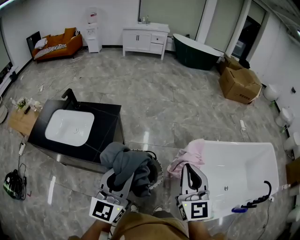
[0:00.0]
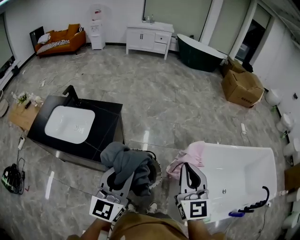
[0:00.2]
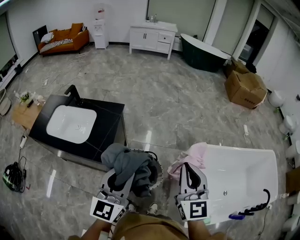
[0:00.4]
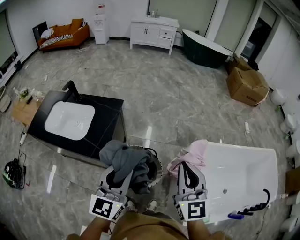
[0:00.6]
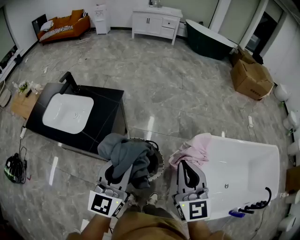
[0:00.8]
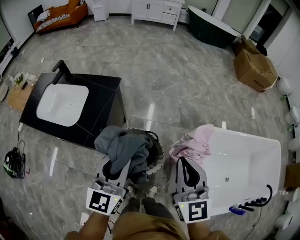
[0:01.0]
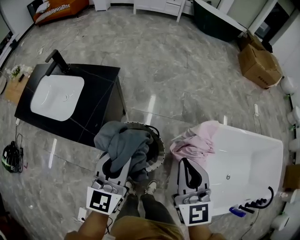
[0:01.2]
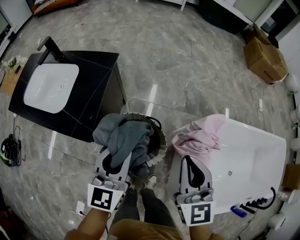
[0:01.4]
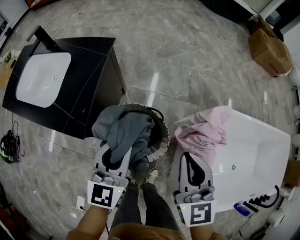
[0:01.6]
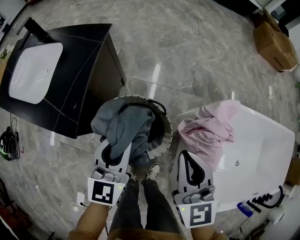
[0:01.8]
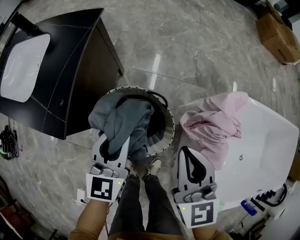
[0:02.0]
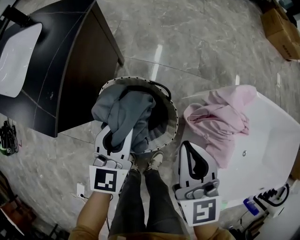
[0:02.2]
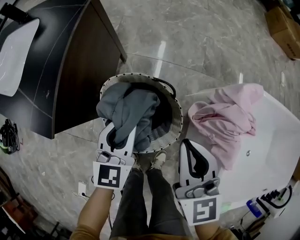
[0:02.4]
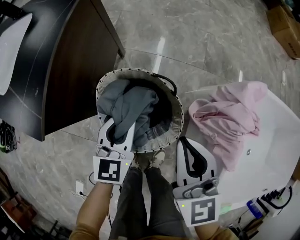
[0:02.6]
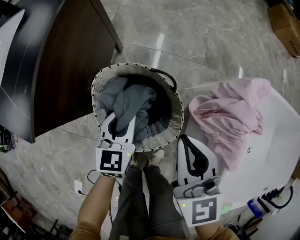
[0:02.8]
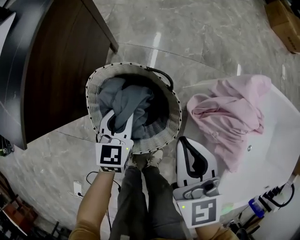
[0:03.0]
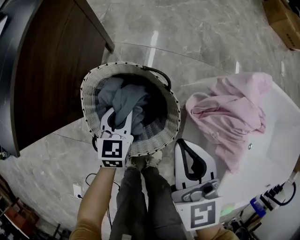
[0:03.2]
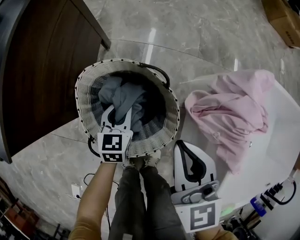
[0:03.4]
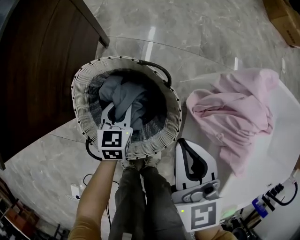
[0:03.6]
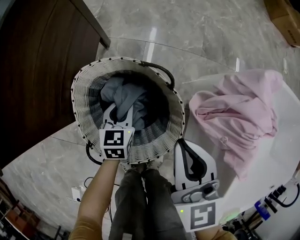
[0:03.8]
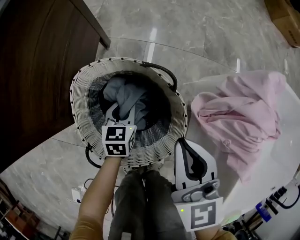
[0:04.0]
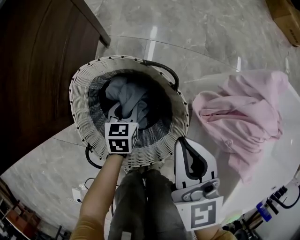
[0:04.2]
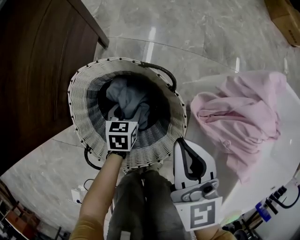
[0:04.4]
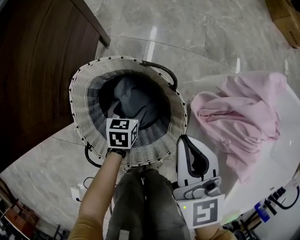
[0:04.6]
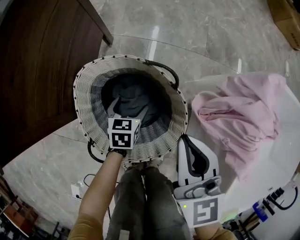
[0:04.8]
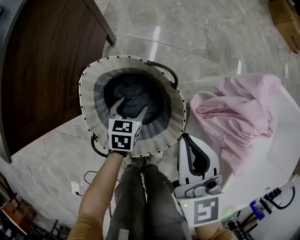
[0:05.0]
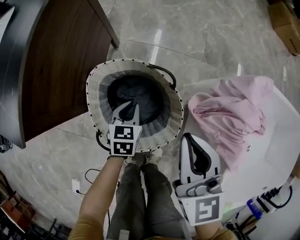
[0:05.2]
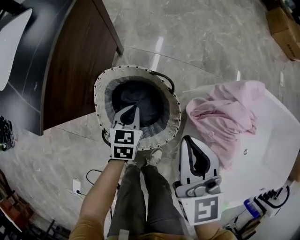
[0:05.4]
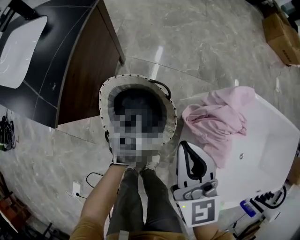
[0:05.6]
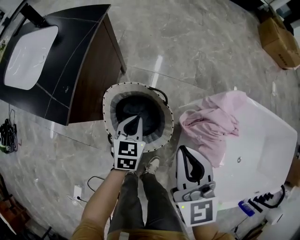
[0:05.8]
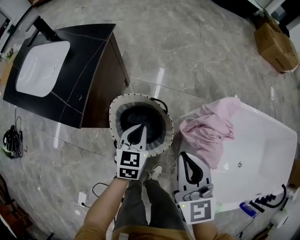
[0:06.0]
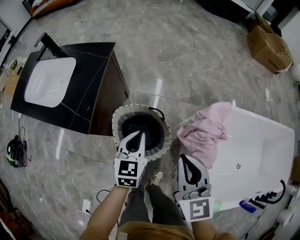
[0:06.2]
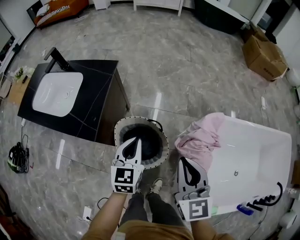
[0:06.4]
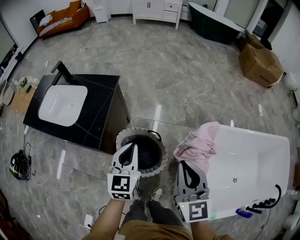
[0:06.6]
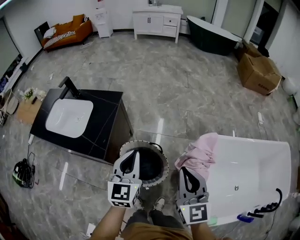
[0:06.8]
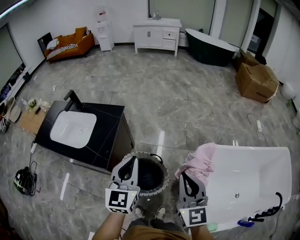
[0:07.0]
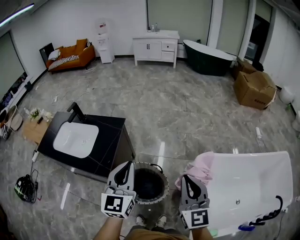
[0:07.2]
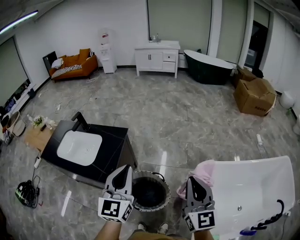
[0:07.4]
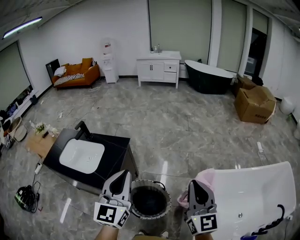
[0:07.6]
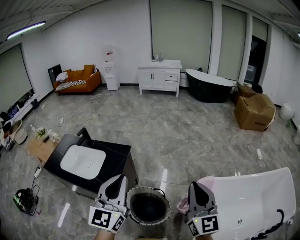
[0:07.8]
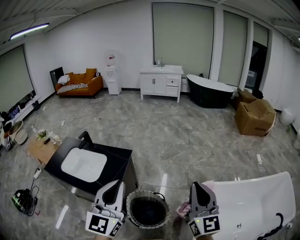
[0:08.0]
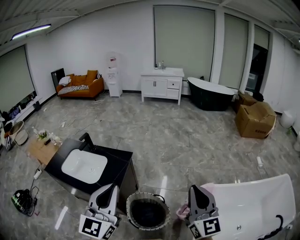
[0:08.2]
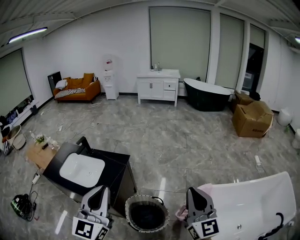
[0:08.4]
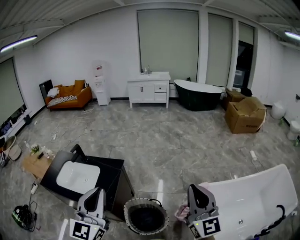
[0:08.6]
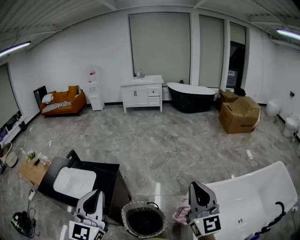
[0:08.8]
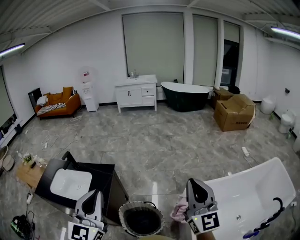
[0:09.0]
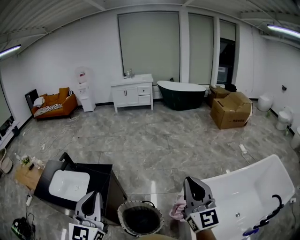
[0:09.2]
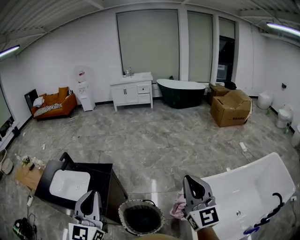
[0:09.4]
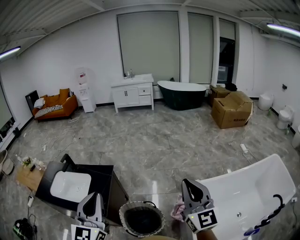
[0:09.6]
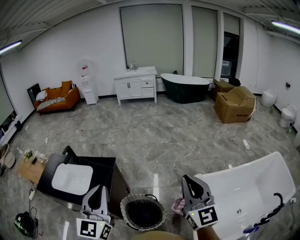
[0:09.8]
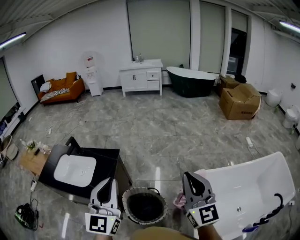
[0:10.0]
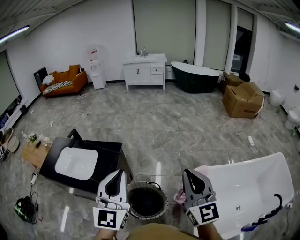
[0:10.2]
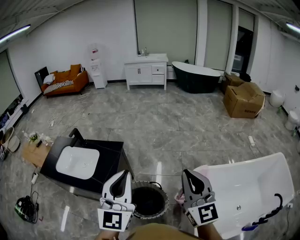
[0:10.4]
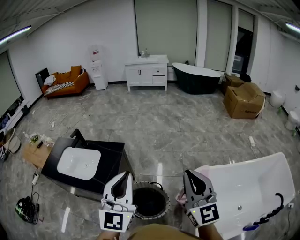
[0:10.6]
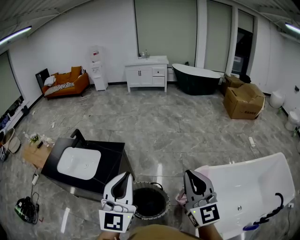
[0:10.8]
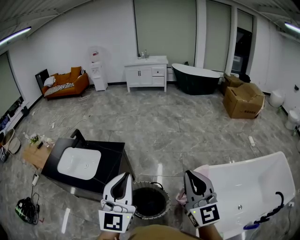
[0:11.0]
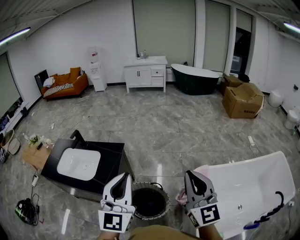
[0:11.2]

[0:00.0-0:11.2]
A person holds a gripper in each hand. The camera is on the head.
0:00.0 to 0:01.6: Both grippers travel together downward and forward, some 25 cm. The left gripper rotates some 20 degrees.
0:01.6 to 0:03.2: The left gripper moves downward, roughly 40 cm. Meanwhile the right gripper shifts some 25 cm downward.
0:03.2 to 0:04.8: The left gripper shifts some 15 cm downward, rotates some 20 degrees, and opens its fingers, while the right gripper moves downward, roughly 5 cm.
0:04.8 to 0:06.4: Both grippers move upward, some 50 cm. The left gripper changes its angle by roughly 30 degrees, and closes its fingers.
0:06.4 to 0:08.0: The grippers both shift upward by roughly 35 cm. The right gripper swivels approximately 20 degrees. The left gripper tilts its fingers approximately 30 degrees upward.
0:08.0 to 0:09.6: The right gripper moves approximately 5 cm.
0:09.6 to 0:11.2: The right gripper moves to the left, approximately 5 cm.

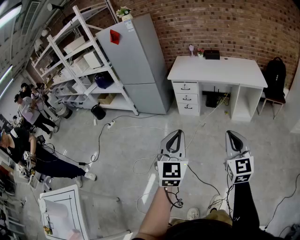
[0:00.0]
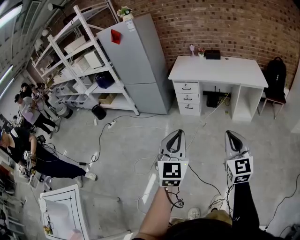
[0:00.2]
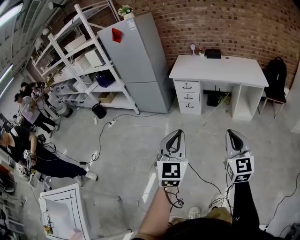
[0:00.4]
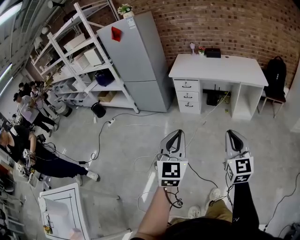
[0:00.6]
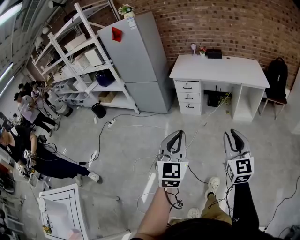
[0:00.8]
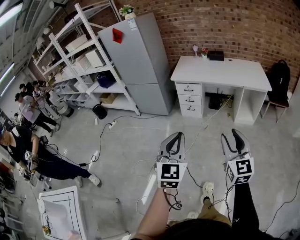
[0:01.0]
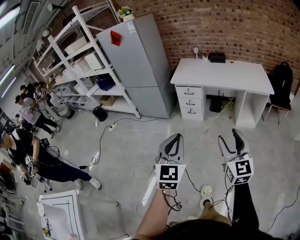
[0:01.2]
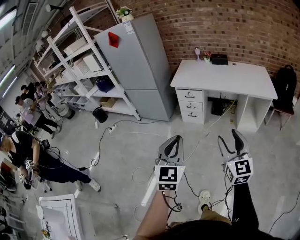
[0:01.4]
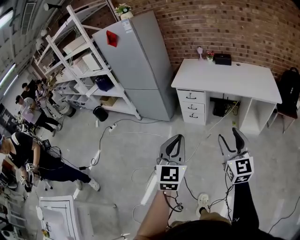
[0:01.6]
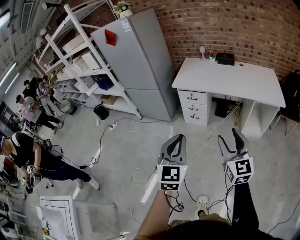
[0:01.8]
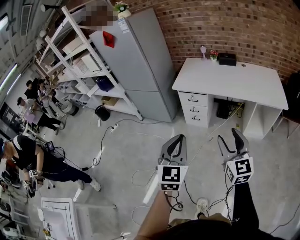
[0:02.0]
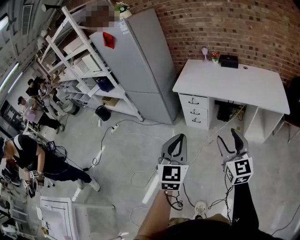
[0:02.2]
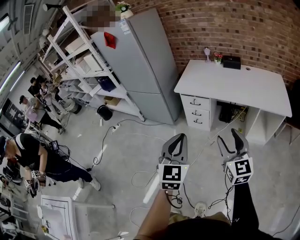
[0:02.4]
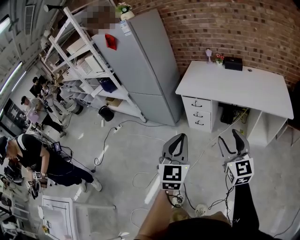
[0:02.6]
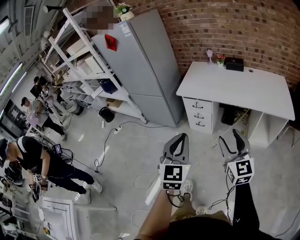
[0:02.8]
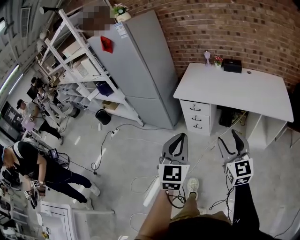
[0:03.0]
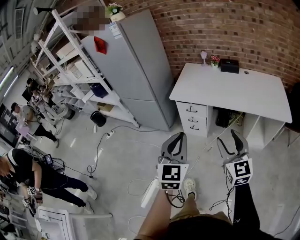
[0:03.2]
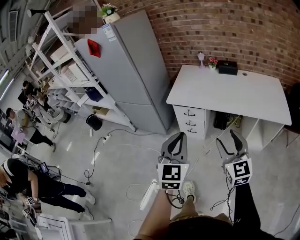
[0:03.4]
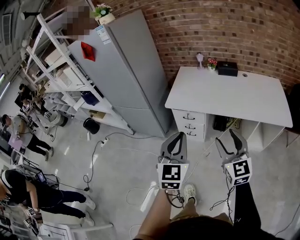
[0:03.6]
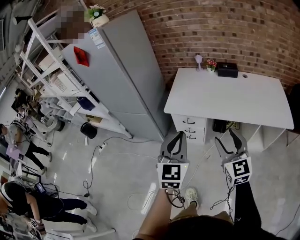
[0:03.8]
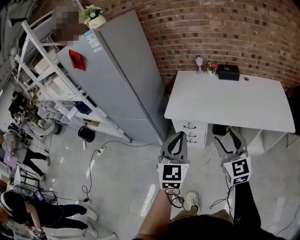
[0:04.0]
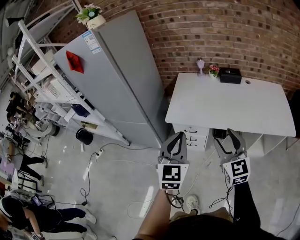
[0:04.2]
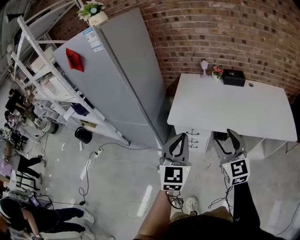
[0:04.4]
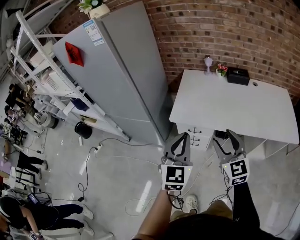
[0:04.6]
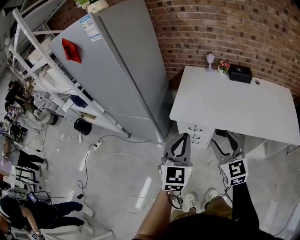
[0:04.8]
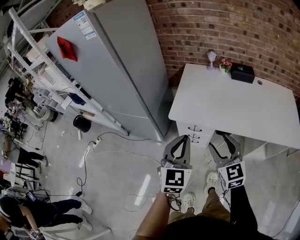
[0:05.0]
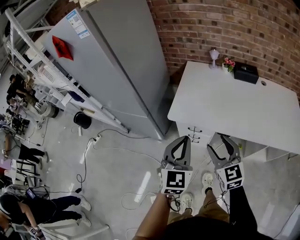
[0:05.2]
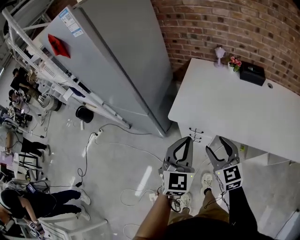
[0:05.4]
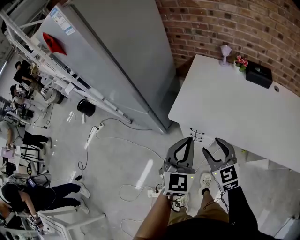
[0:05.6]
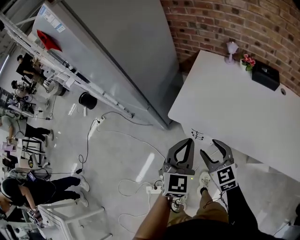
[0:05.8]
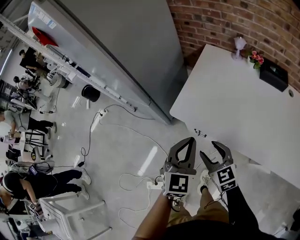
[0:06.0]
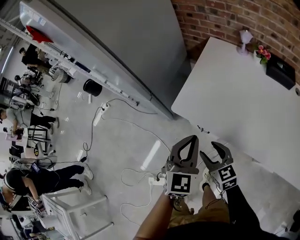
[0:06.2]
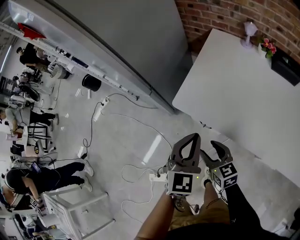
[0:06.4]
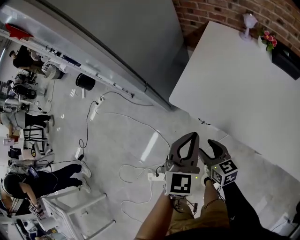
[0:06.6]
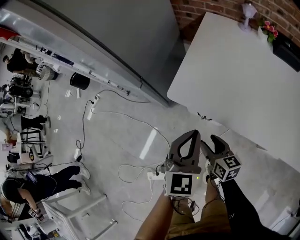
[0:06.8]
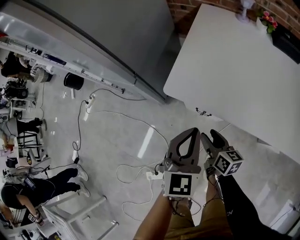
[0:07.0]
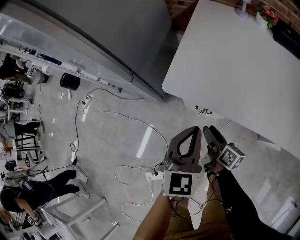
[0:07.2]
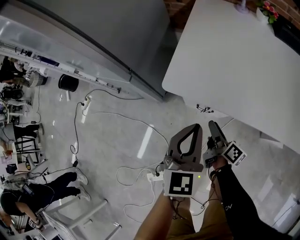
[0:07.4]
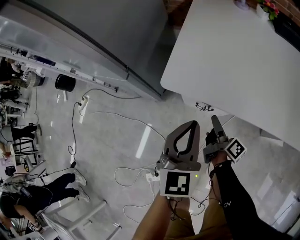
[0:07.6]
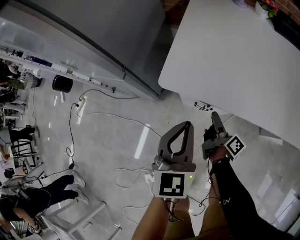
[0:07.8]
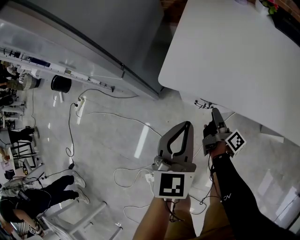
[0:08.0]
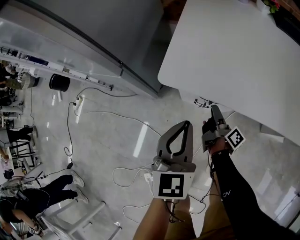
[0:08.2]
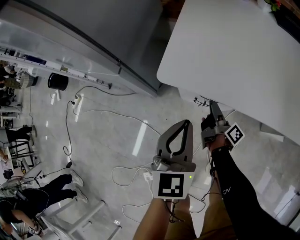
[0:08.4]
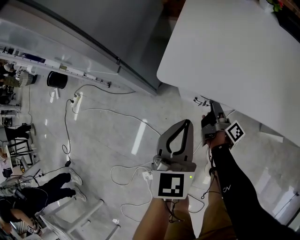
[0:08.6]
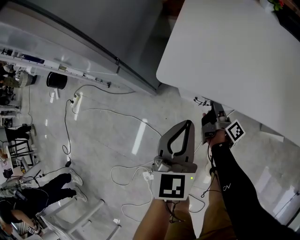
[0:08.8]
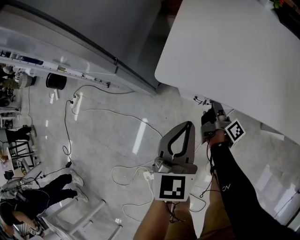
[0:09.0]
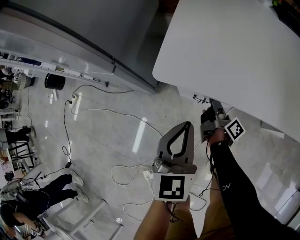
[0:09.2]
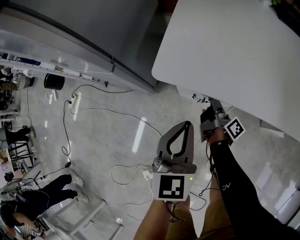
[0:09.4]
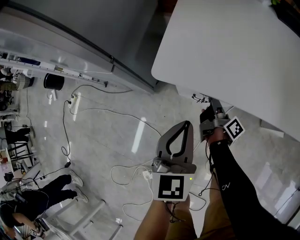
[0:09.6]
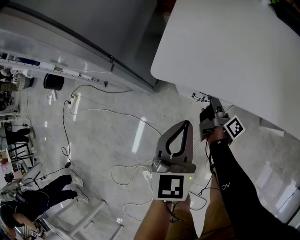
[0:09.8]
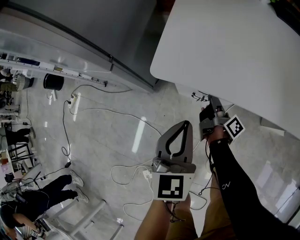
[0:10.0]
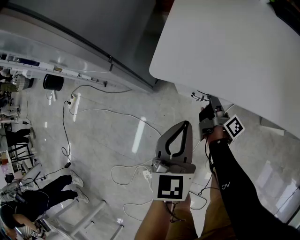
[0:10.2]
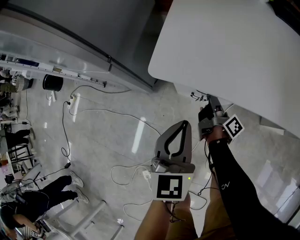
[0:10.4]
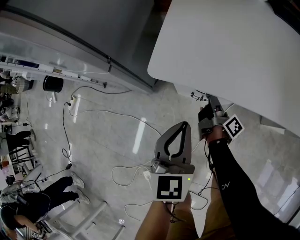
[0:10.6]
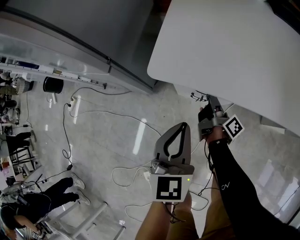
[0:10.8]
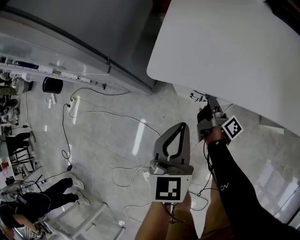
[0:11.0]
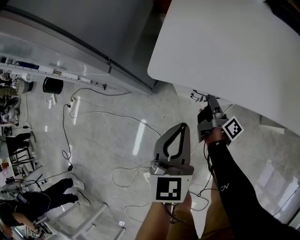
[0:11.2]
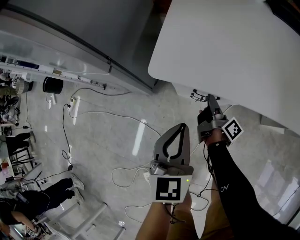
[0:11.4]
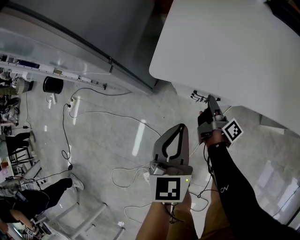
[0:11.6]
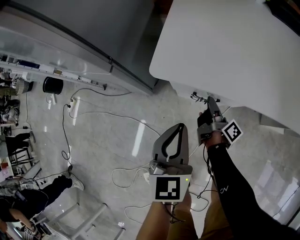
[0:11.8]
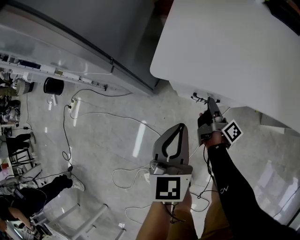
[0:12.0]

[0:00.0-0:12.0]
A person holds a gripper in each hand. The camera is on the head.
0:00.0 to 0:01.6: The grippers both shift forward by some 20 cm. The right gripper opens.
0:01.6 to 0:03.0: The two grippers go approximately 20 cm forward.
0:03.0 to 0:04.4: Both grippers travel together forward, roughly 30 cm.
0:04.4 to 0:06.0: The left gripper shifts approximately 25 cm forward, downward and to the right. The right gripper travels downward and forward by approximately 25 cm, and rotates some 40 degrees.
0:06.0 to 0:07.6: The left gripper is displaced downward by some 15 cm. Meanwhile the right gripper heads downward, covering about 25 cm, and rolls clockwise, seen from behind, by some 80 degrees.
0:07.6 to 0:09.0: The right gripper goes about 10 cm downward and forward, and closes up. Meanwhile the left gripper heads downward, covering roughly 5 cm.
0:09.0 to 0:10.4: Both grippers stay about where they are.
0:10.4 to 0:12.0: The grippers move only a little.

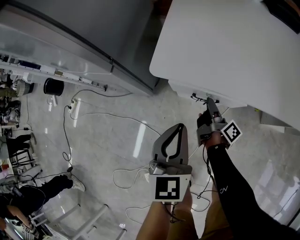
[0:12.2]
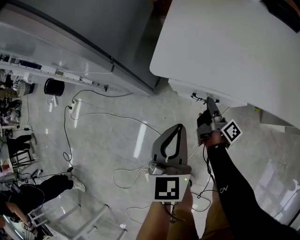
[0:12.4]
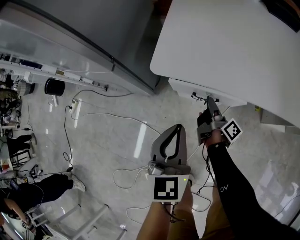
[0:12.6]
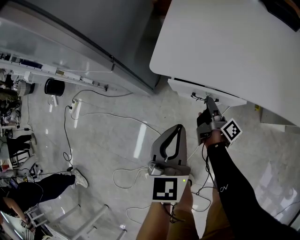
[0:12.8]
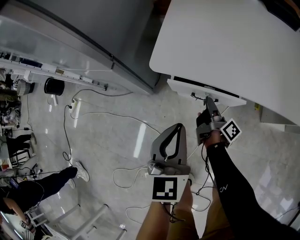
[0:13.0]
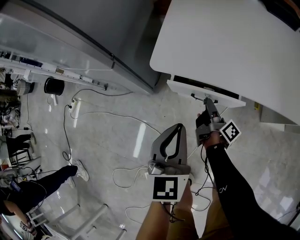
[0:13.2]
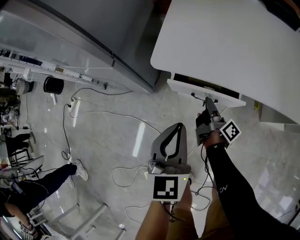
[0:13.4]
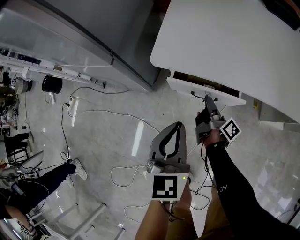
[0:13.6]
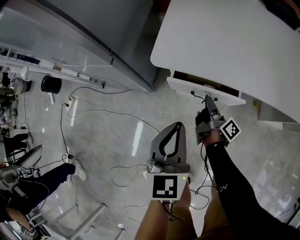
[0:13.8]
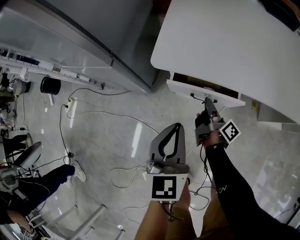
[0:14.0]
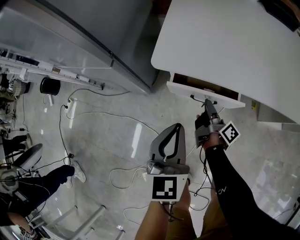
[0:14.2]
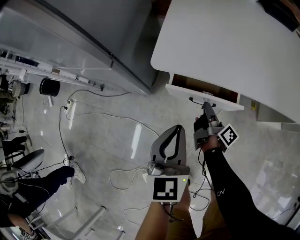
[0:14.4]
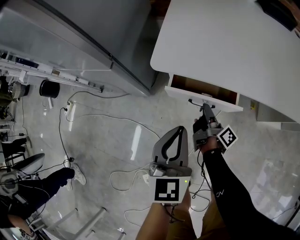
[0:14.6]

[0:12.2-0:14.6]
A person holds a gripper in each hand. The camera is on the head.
0:12.2 to 0:14.6: The grippers move only a little.
